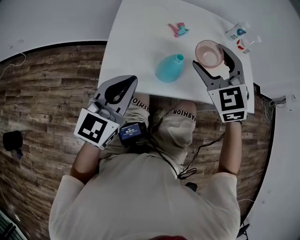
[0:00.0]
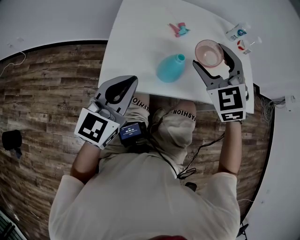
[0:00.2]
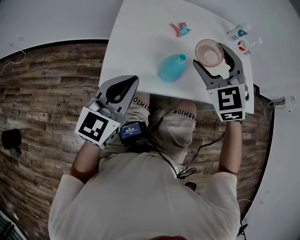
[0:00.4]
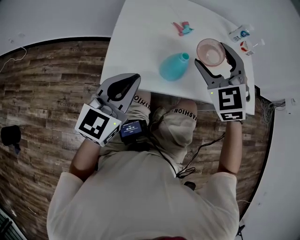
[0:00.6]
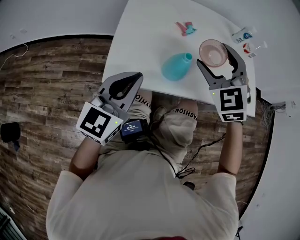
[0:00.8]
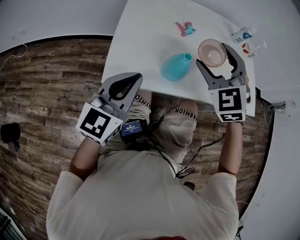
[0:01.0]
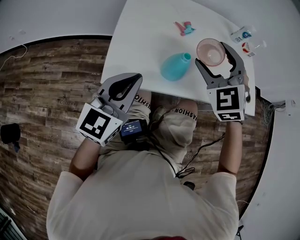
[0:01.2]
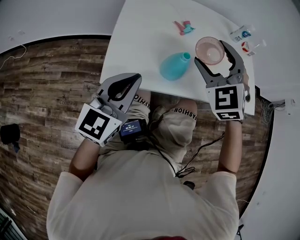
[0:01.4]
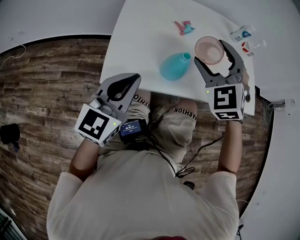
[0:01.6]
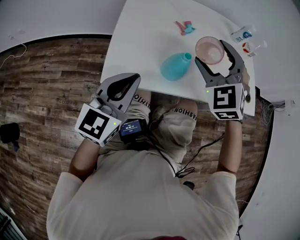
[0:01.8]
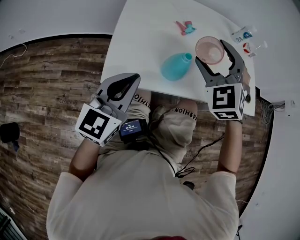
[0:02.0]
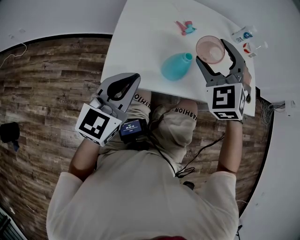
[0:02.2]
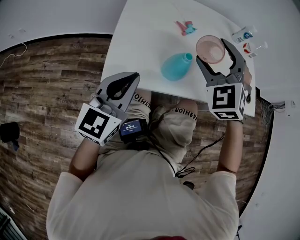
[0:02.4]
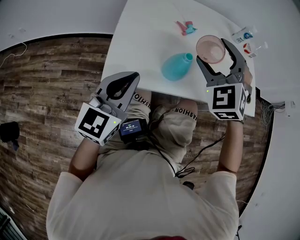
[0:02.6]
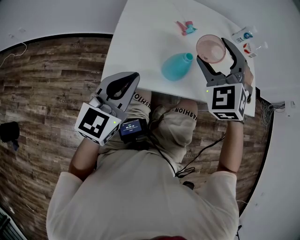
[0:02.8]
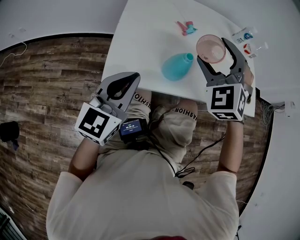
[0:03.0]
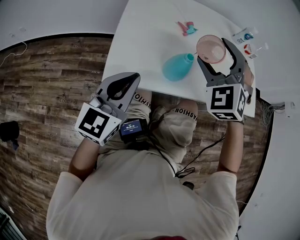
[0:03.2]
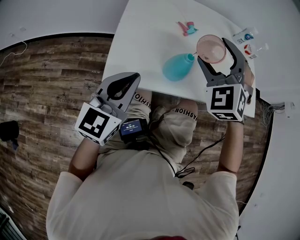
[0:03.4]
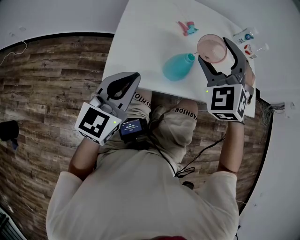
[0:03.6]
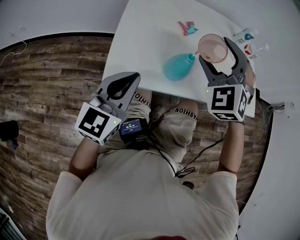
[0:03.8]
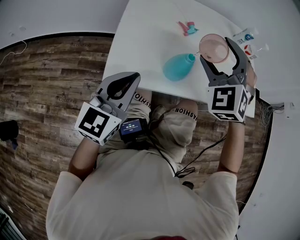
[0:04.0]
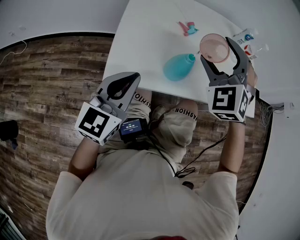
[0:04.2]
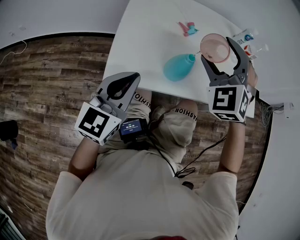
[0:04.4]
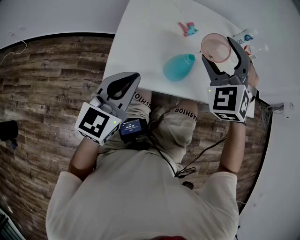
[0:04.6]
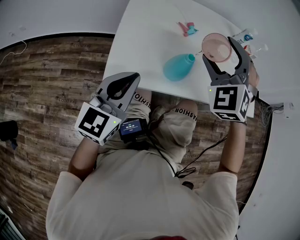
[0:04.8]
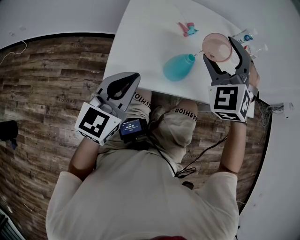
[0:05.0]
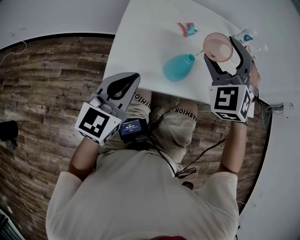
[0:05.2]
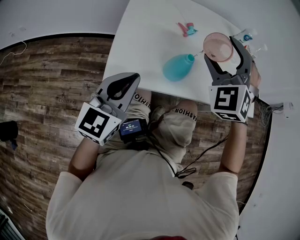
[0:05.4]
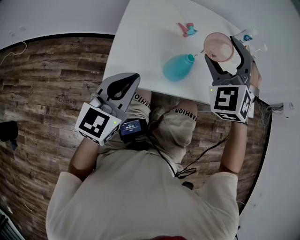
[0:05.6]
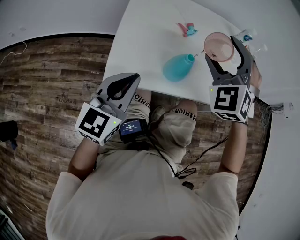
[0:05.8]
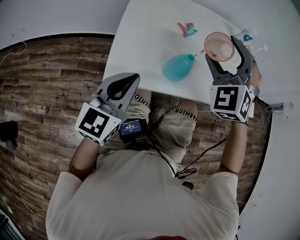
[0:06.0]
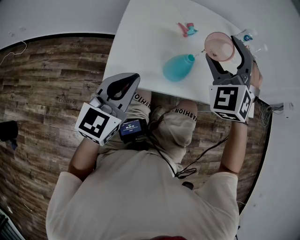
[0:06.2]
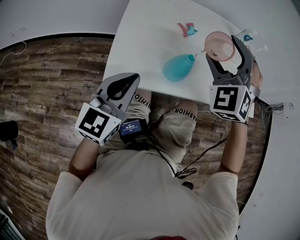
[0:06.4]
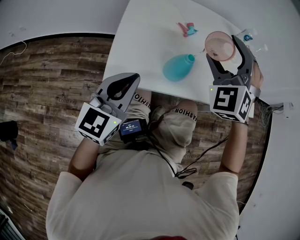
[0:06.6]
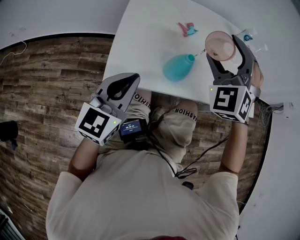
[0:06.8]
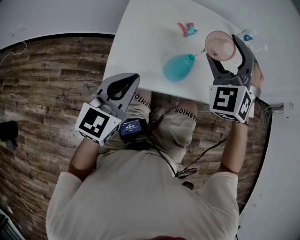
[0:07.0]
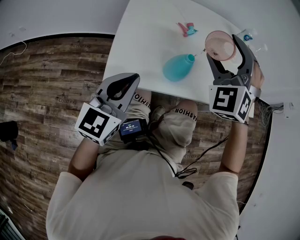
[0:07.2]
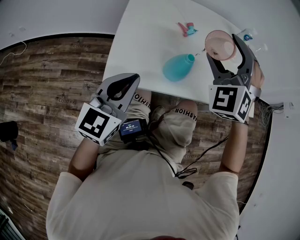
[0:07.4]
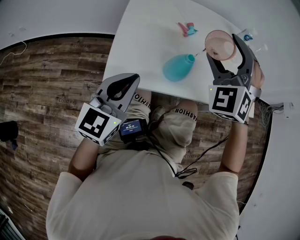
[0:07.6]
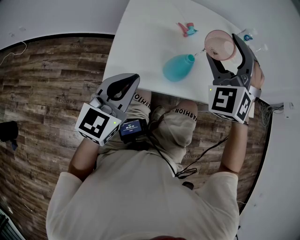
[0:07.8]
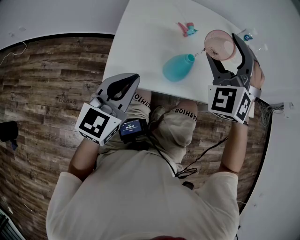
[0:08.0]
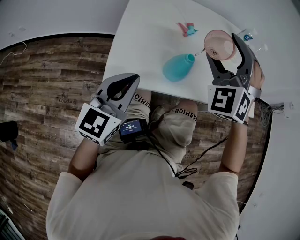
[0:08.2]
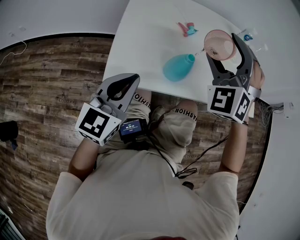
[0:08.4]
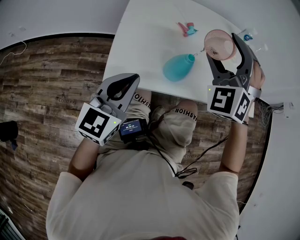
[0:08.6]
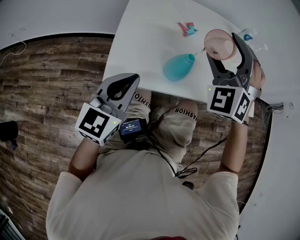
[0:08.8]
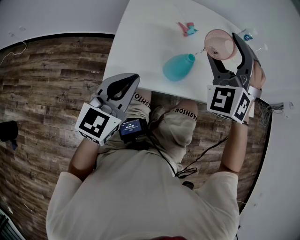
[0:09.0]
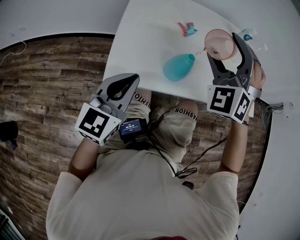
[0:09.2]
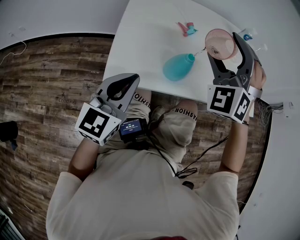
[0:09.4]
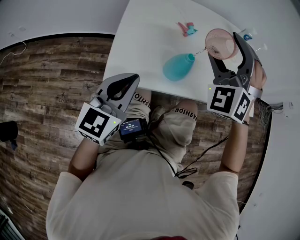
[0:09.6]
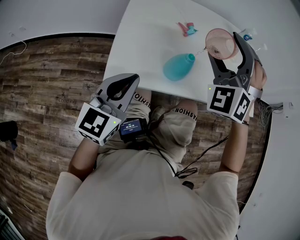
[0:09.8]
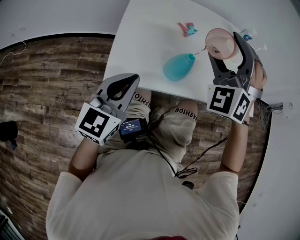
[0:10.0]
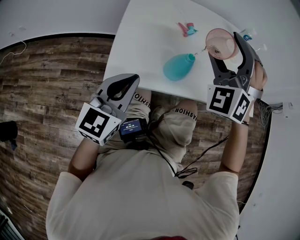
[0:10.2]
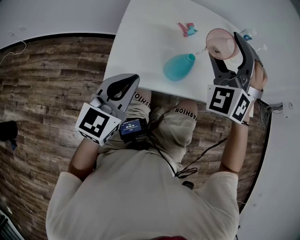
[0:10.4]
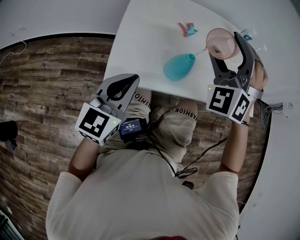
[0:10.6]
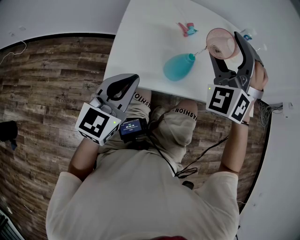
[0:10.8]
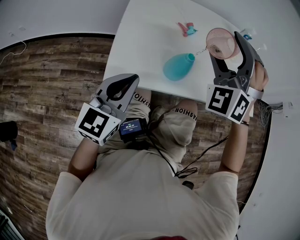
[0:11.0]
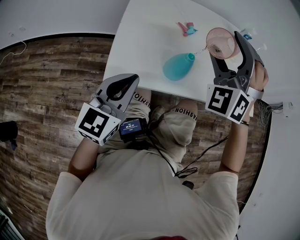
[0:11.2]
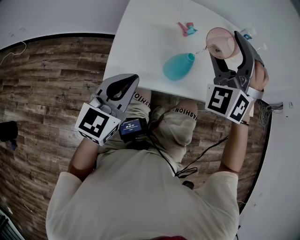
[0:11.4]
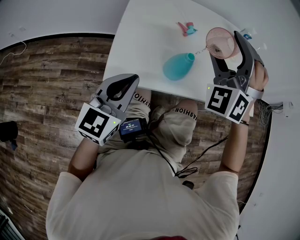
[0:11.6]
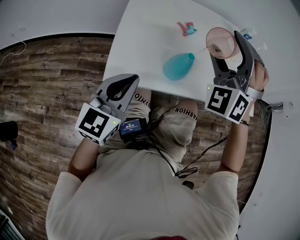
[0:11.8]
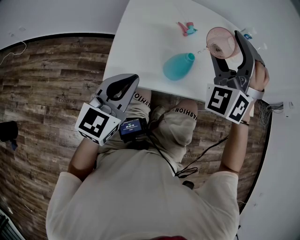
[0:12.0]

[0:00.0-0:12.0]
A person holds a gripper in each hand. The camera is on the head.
0:00.0 to 0:03.0: The grippers stay close to where they were, moving slightly.
0:03.0 to 0:04.4: The two grippers keep their place.
0:04.4 to 0:06.0: There are only small adjustments of the grippers.
0:06.0 to 0:07.6: Neither gripper changes place.
0:07.6 to 0:09.0: The two grippers keep their place.
0:09.0 to 0:10.4: Both grippers stay put.
0:10.4 to 0:12.0: Both grippers stay put.

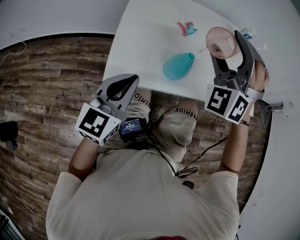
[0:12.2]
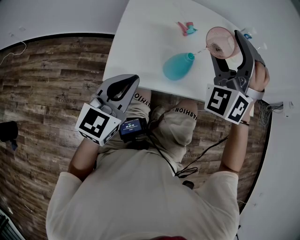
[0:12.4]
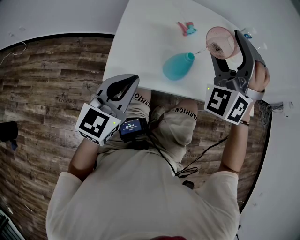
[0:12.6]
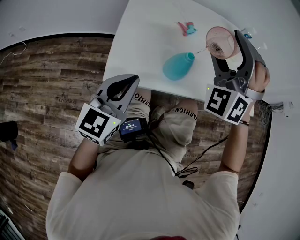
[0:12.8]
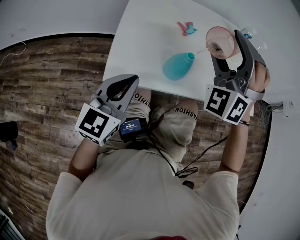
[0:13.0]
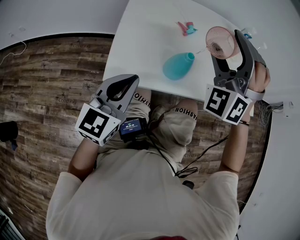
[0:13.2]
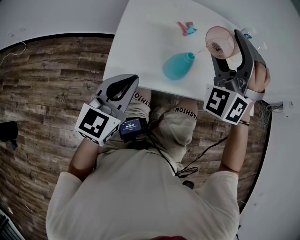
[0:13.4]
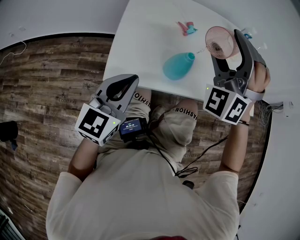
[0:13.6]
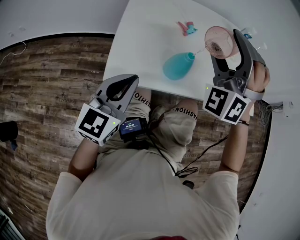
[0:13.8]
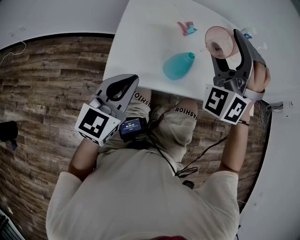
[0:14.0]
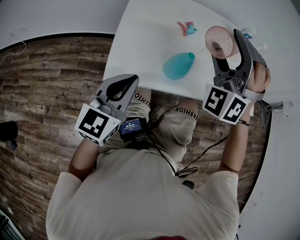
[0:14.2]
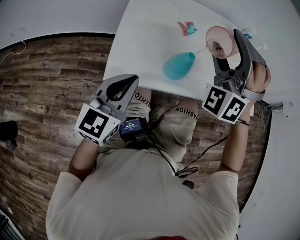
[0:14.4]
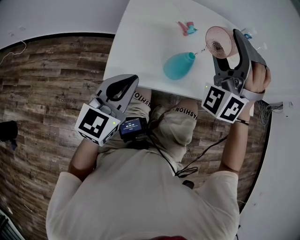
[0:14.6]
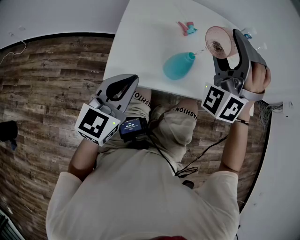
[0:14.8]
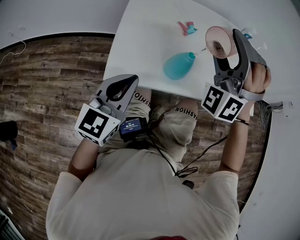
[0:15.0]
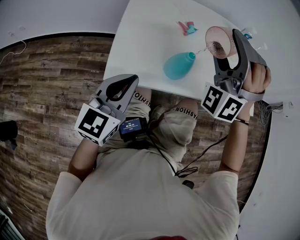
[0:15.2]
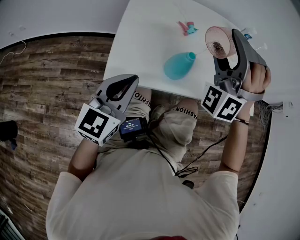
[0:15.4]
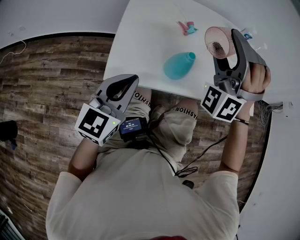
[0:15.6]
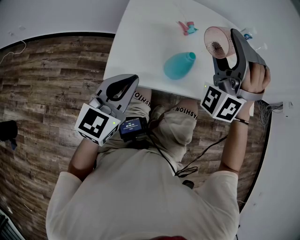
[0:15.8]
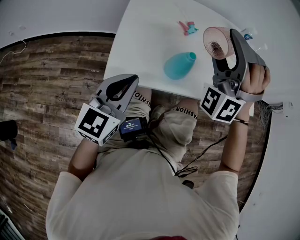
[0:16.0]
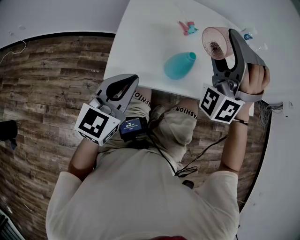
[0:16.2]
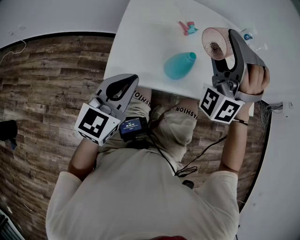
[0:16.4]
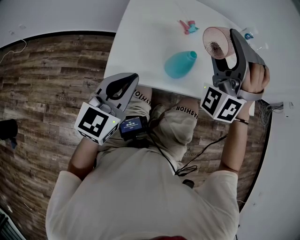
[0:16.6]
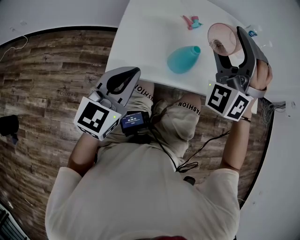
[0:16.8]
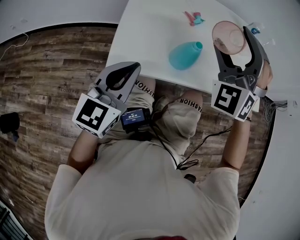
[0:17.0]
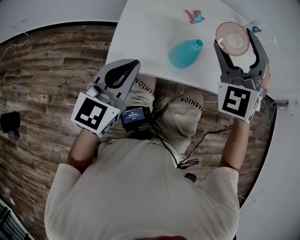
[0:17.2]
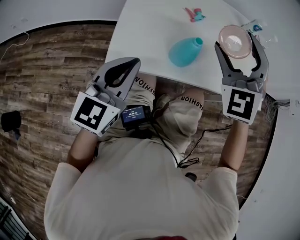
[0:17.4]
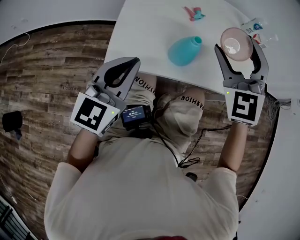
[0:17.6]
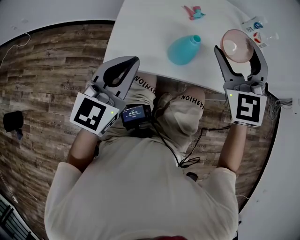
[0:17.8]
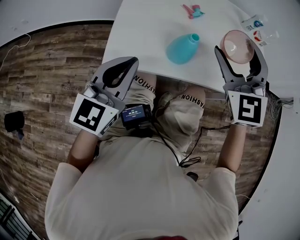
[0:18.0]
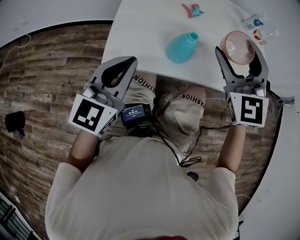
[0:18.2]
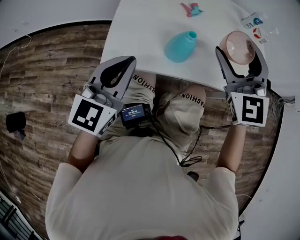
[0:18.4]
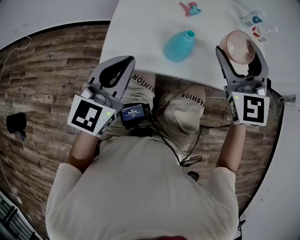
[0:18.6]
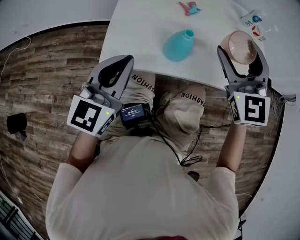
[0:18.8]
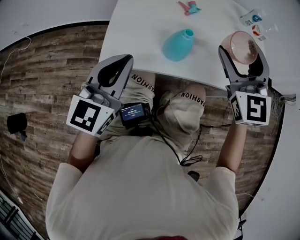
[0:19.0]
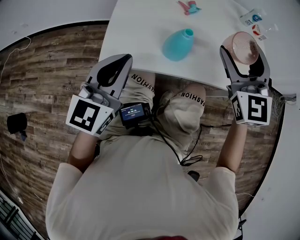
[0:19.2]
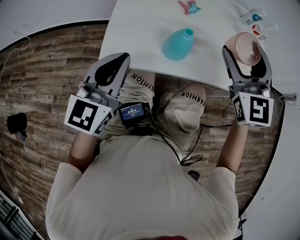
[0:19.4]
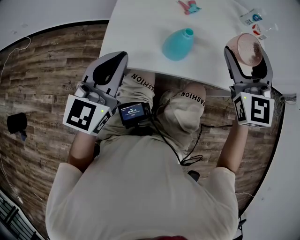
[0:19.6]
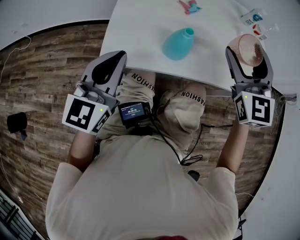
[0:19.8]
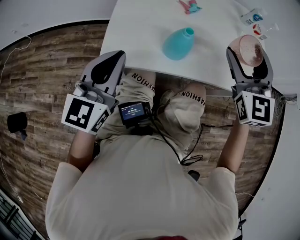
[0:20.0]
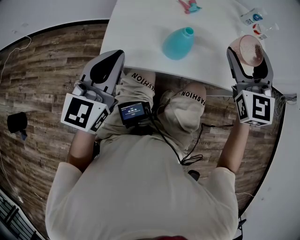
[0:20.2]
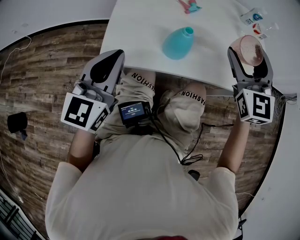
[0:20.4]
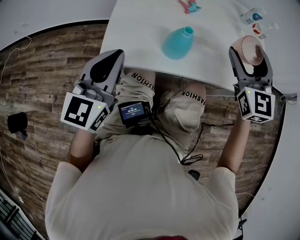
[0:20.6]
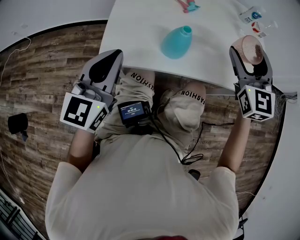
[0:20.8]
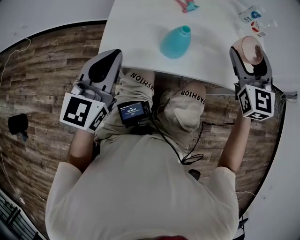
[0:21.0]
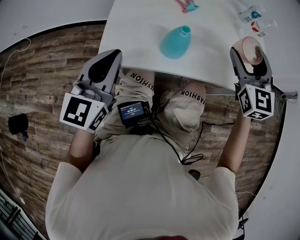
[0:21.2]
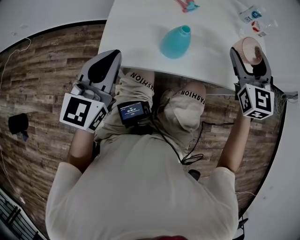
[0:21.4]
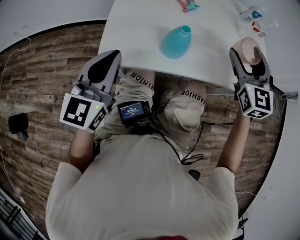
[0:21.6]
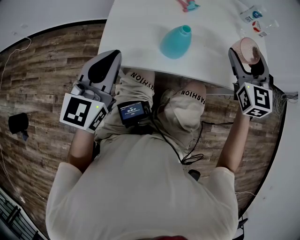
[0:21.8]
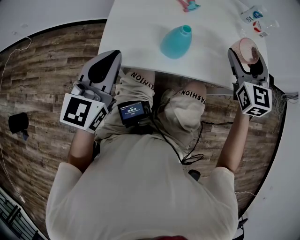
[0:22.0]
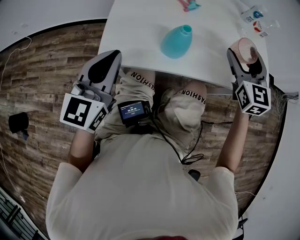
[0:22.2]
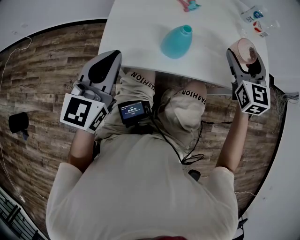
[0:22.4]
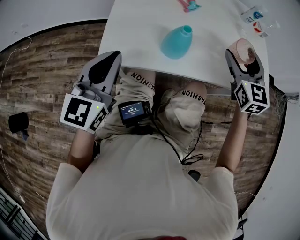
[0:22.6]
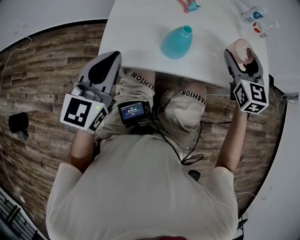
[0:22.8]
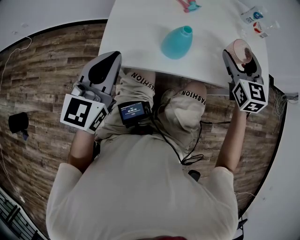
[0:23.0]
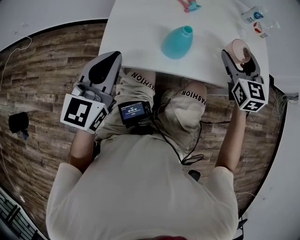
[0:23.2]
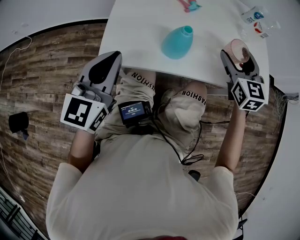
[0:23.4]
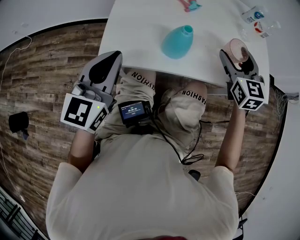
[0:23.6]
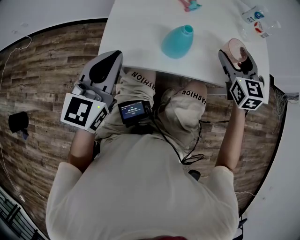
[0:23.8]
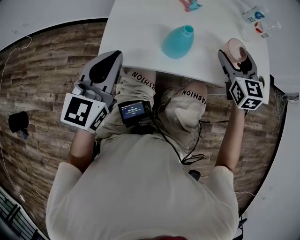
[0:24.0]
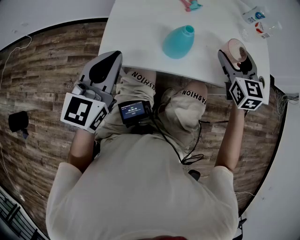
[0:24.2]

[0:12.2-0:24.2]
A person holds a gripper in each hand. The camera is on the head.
0:12.2 to 0:13.8: The two grippers keep their place.
0:13.8 to 0:15.2: There are only small adjustments of the grippers.
0:15.2 to 0:16.6: Both grippers stay about where they are.
0:16.6 to 0:18.2: The right gripper travels to the right by approximately 5 cm, and rotates around the line of its fingers by roughly 60 degrees, clockwise from behind.
0:18.2 to 0:19.8: The right gripper goes about 5 cm to the right.
0:19.8 to 0:21.2: The right gripper travels to the right by about 5 cm.
0:21.2 to 0:22.6: The right gripper is displaced downward by about 5 cm.
0:22.6 to 0:24.2: The grippers stay close to where they were, moving slightly.
